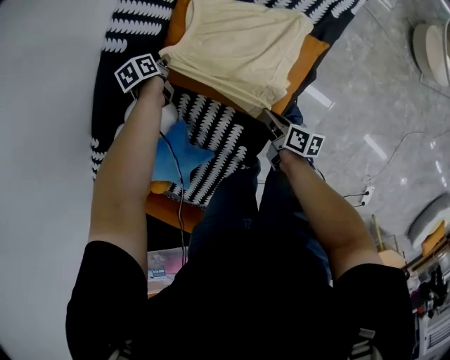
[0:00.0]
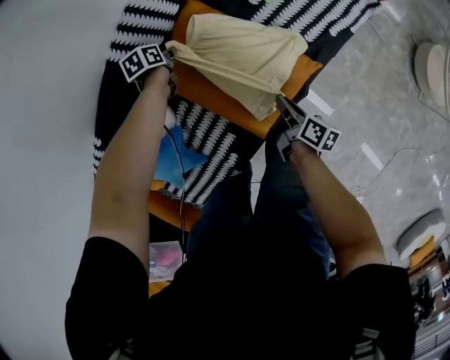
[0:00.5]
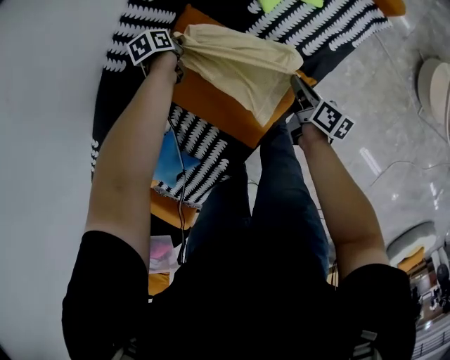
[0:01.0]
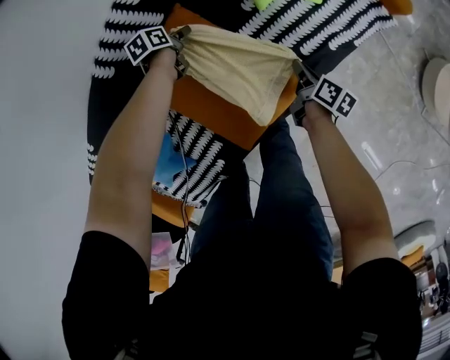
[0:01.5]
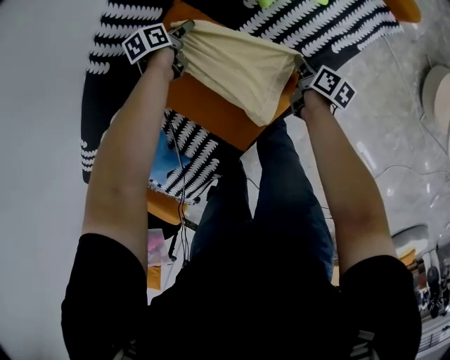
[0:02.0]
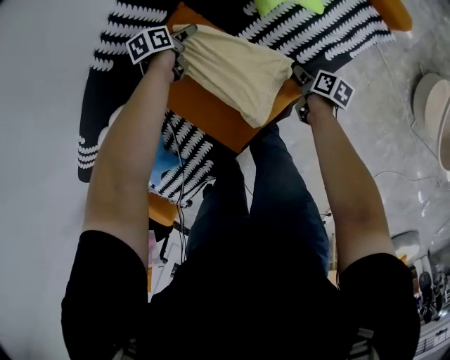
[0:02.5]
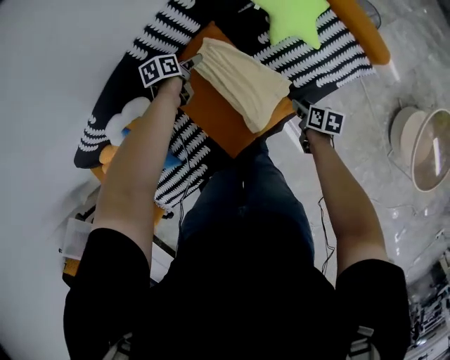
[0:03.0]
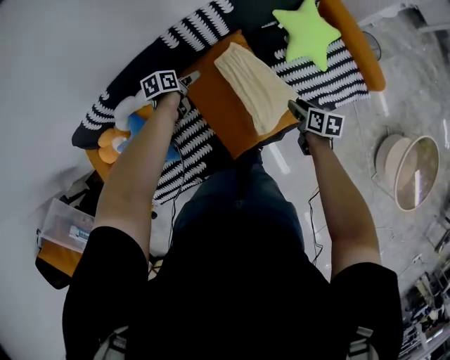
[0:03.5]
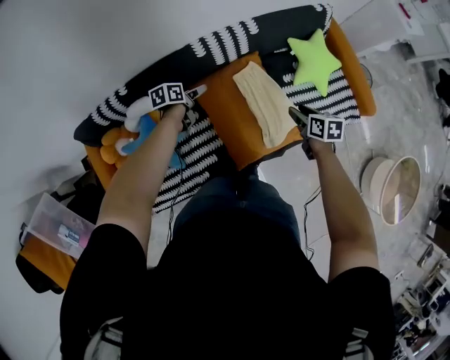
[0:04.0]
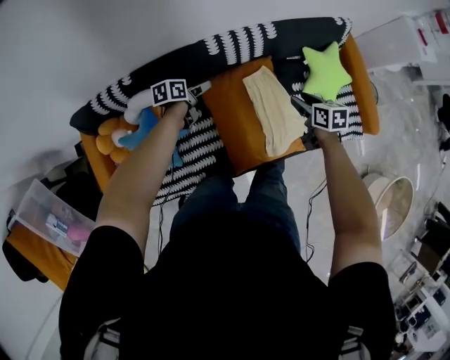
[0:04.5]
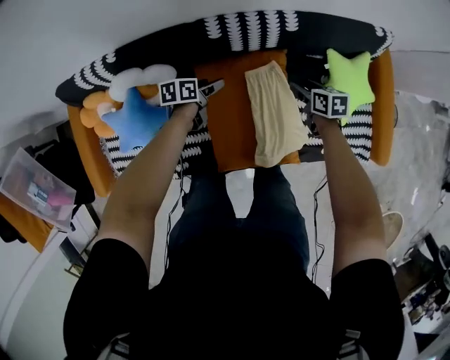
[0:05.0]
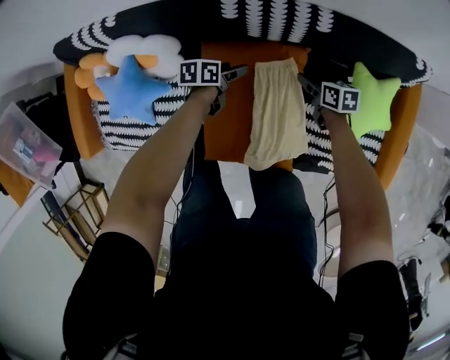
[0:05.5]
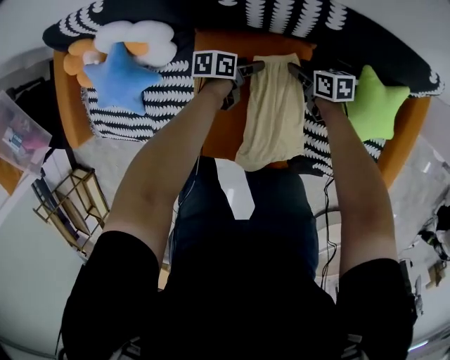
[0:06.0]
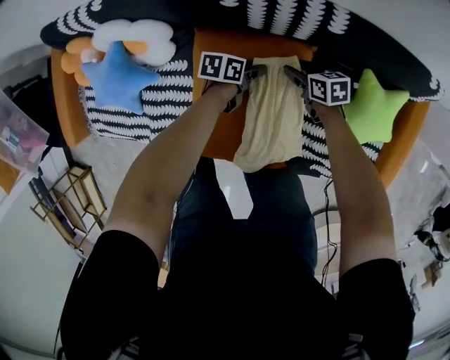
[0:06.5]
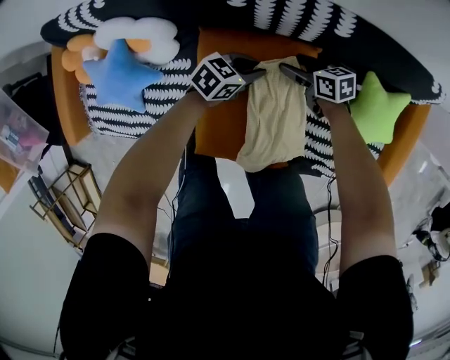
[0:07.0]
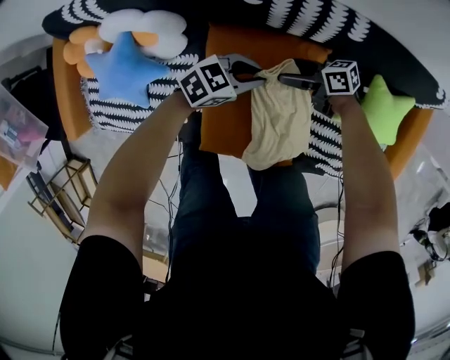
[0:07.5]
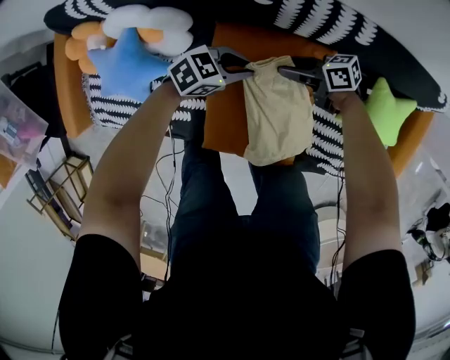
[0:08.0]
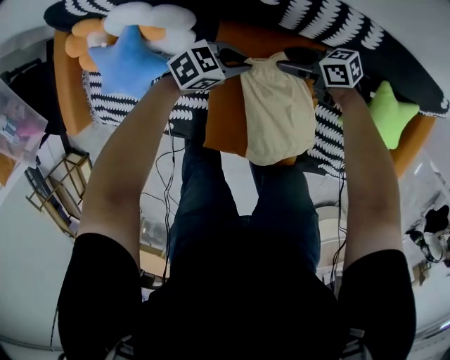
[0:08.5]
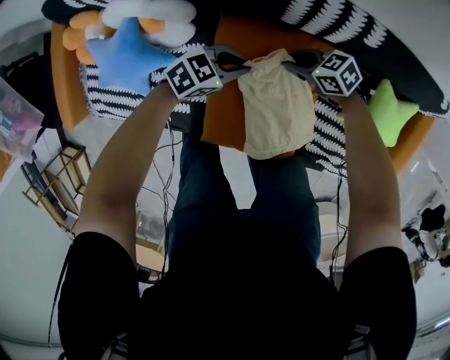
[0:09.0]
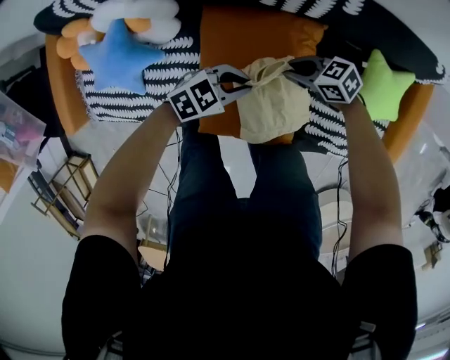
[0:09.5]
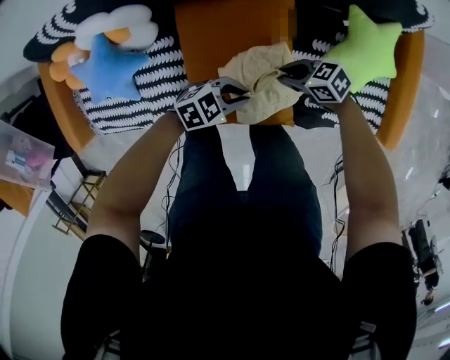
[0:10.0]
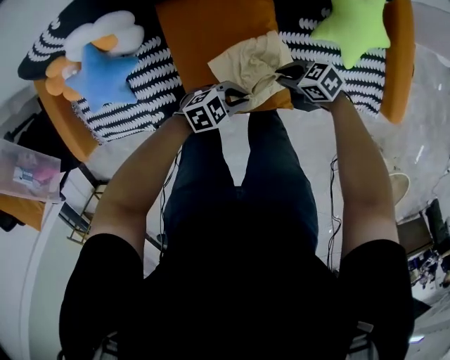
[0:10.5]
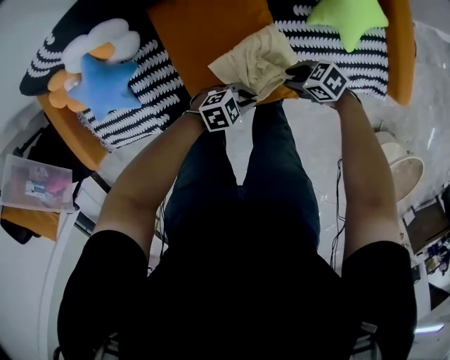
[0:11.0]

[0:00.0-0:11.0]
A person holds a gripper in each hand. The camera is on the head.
0:00.0 to 0:02.0: The right gripper goes approximately 35 cm forward and to the right; the left gripper moves forward and to the right, some 20 cm, and opens.
0:02.0 to 0:03.5: The left gripper moves upward, backward and to the left, roughly 30 cm. Meanwhile the right gripper travels upward by roughly 25 cm, twists some 40 degrees counterclockwise, seen from behind, and opens up.
0:03.5 to 0:05.5: The left gripper travels downward by approximately 15 cm, and turns by approximately 20 degrees. The right gripper ends up approximately 35 cm from where it was, and rotates approximately 40 degrees.
0:05.5 to 0:07.5: The right gripper moves roughly 15 cm, turns by about 40 degrees, and opens its fingers; the left gripper moves upward, some 5 cm, rotates around the line of its fingers by approximately 50 degrees, clockwise from behind, and closes its fingers.
0:07.5 to 0:09.0: The right gripper turns by approximately 30 degrees, and closes; the left gripper moves about 5 cm.
0:09.0 to 0:11.0: The right gripper shifts by about 35 cm. The left gripper changes place by approximately 35 cm, and changes its angle by roughly 40 degrees.

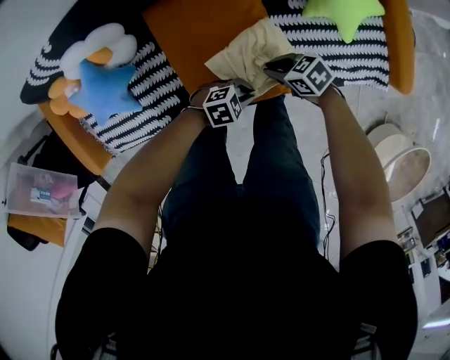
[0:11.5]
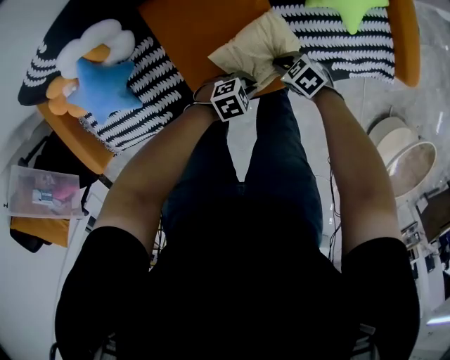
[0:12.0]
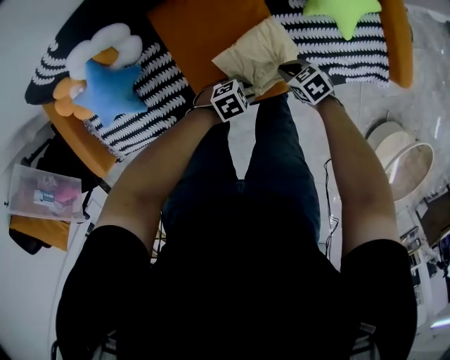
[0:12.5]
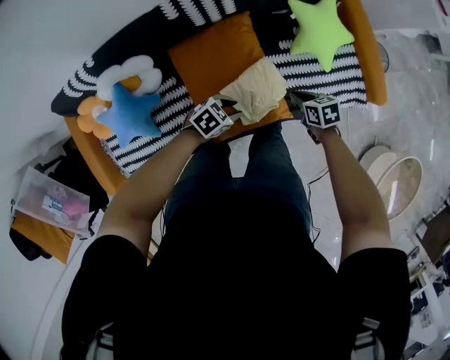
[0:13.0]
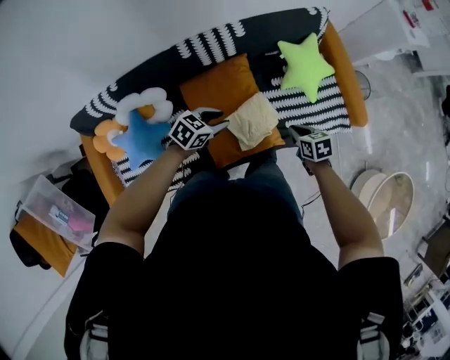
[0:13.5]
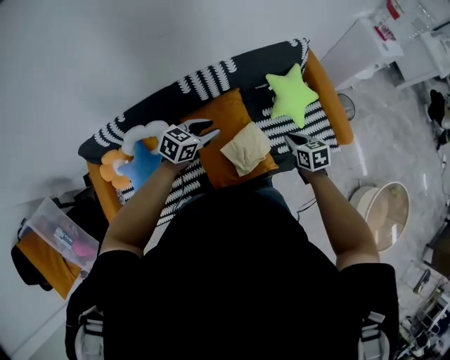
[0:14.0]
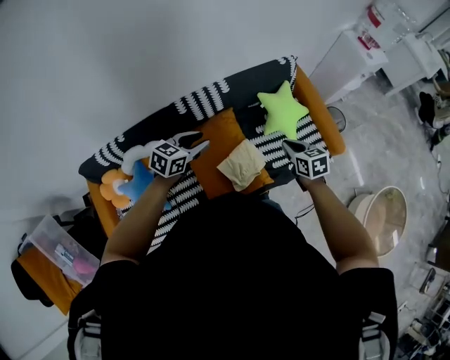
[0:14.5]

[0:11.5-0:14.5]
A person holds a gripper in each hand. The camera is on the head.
0:11.5 to 0:13.0: The grippers both shift upward by approximately 10 cm. The right gripper turns by roughly 30 degrees.
0:13.0 to 0:14.5: The grippers both shift upward by some 30 cm. The right gripper changes its angle by approximately 20 degrees. The left gripper rotates roughly 30 degrees.

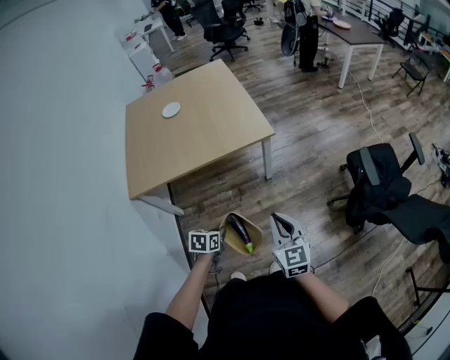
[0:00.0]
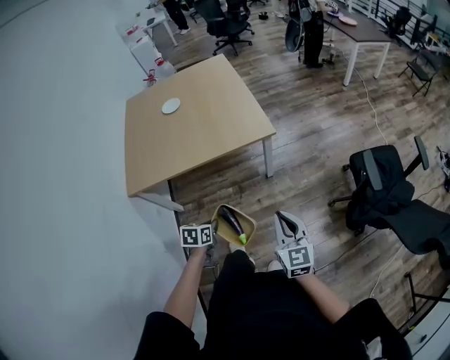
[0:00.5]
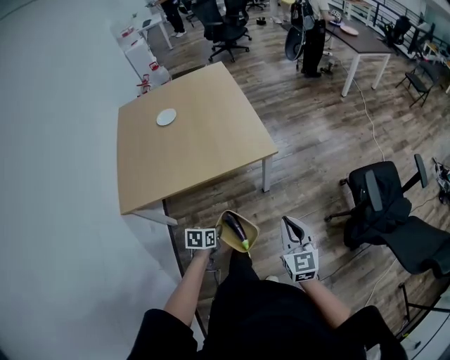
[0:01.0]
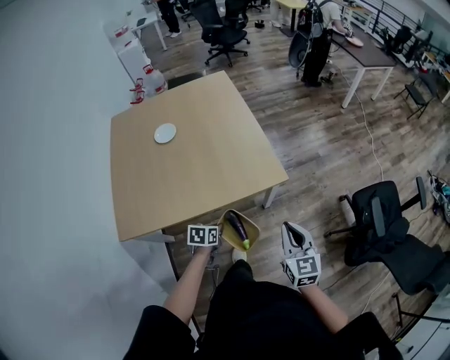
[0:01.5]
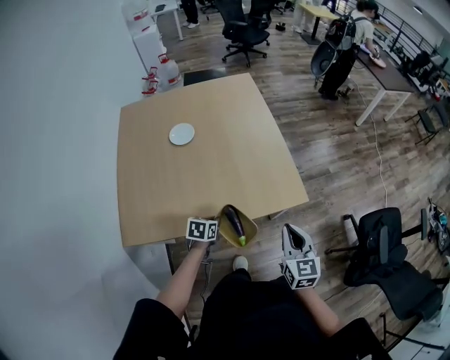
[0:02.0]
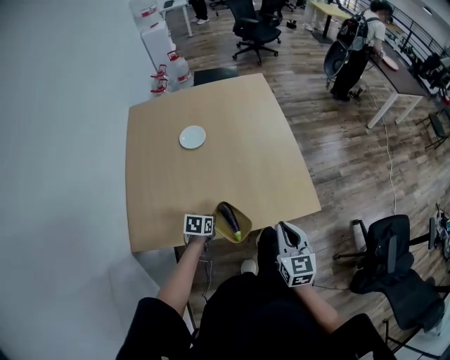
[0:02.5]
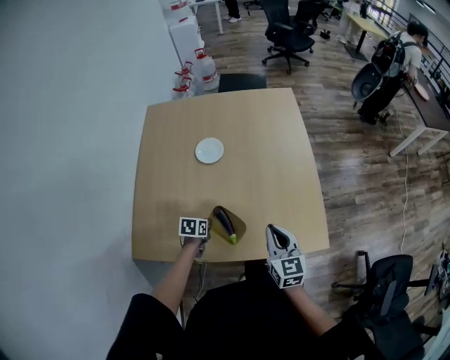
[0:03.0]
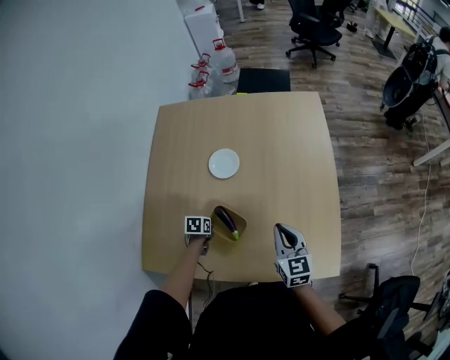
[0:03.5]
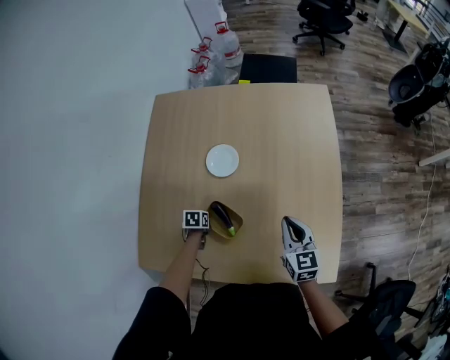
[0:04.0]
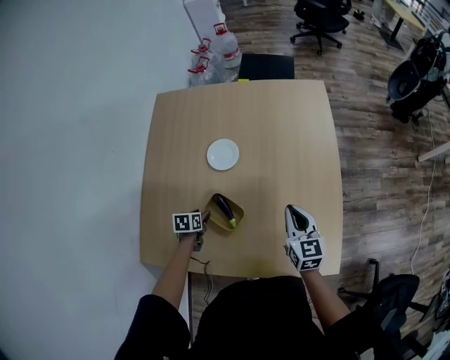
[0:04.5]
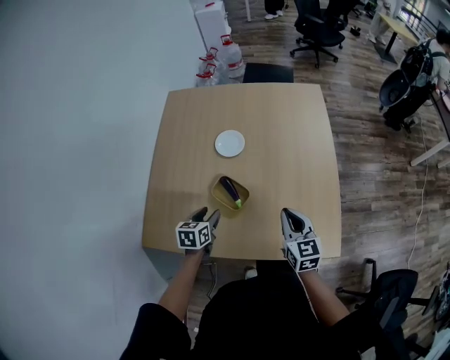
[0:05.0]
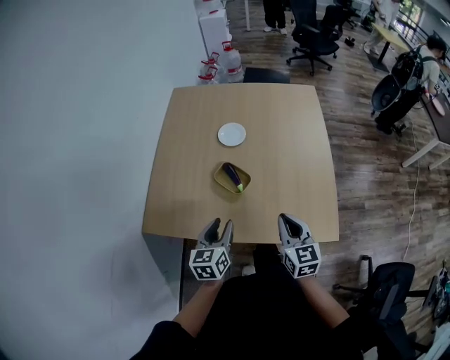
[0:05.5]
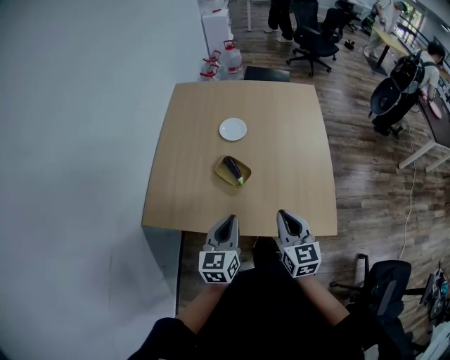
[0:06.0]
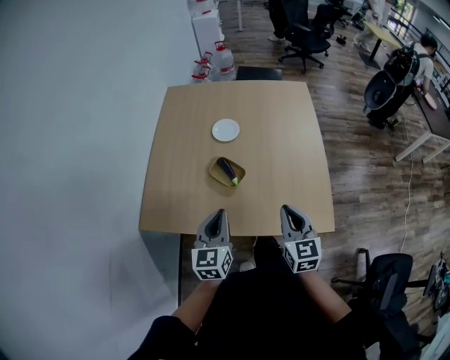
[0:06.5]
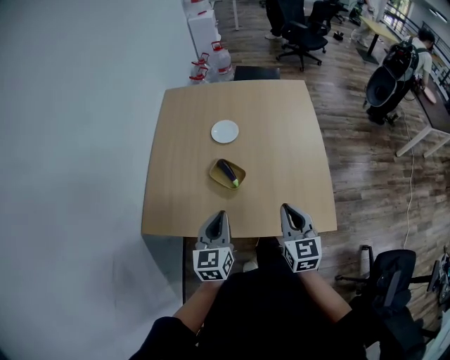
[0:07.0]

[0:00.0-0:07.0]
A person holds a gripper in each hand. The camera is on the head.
0:00.0 to 0:02.0: The grippers both shift forward and to the left by some 40 cm.
0:02.0 to 0:03.5: The right gripper is displaced forward and to the left by some 35 cm, and turns by approximately 20 degrees. Meanwhile the left gripper travels to the left, forward and downward by about 30 cm, and rotates some 30 degrees.
0:03.5 to 0:05.0: The right gripper travels backward by some 5 cm. Meanwhile the left gripper heads upward and backward, covering some 15 cm, changes its angle by approximately 30 degrees, and opens its fingers.
0:05.0 to 0:07.0: The right gripper goes about 15 cm backward and upward, while the left gripper heads upward and backward, covering some 20 cm, swivels roughly 30 degrees, and closes.

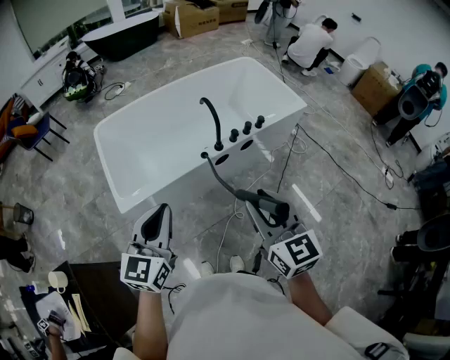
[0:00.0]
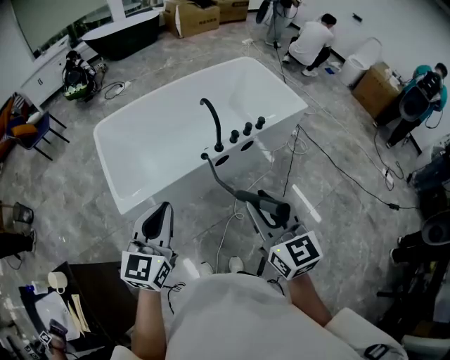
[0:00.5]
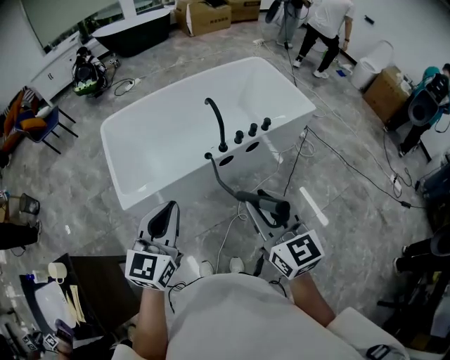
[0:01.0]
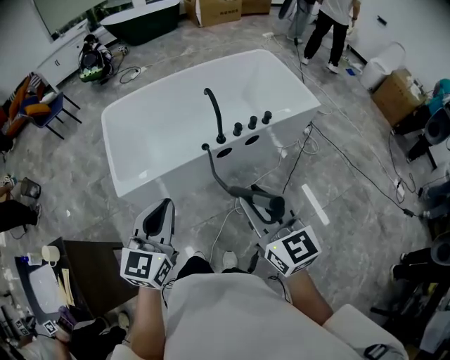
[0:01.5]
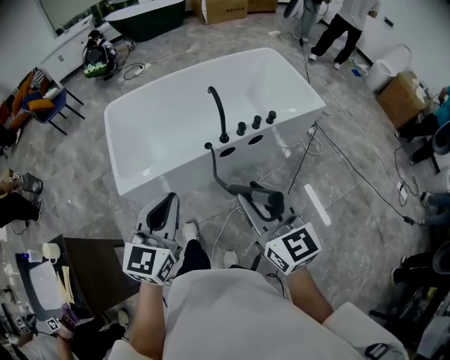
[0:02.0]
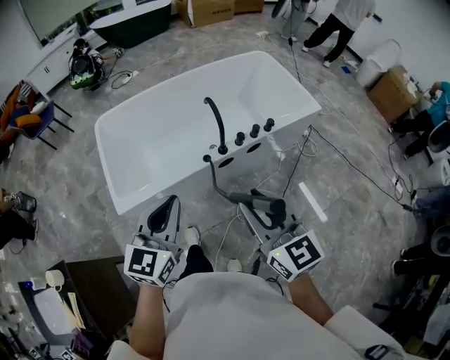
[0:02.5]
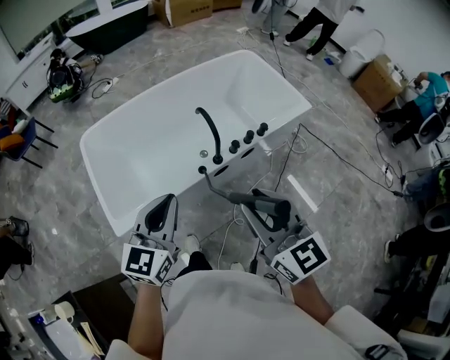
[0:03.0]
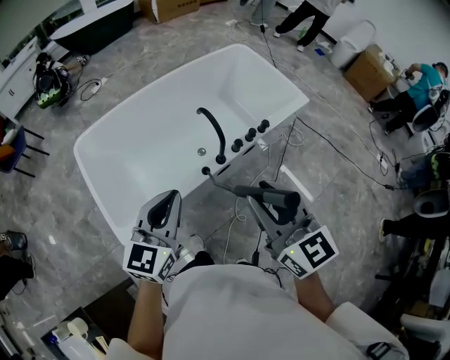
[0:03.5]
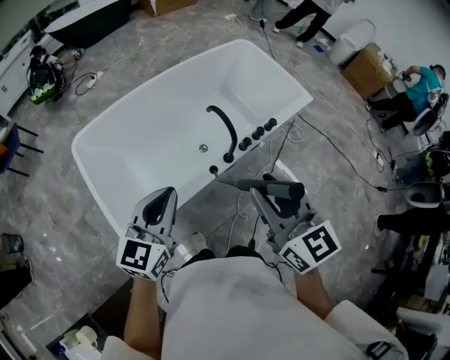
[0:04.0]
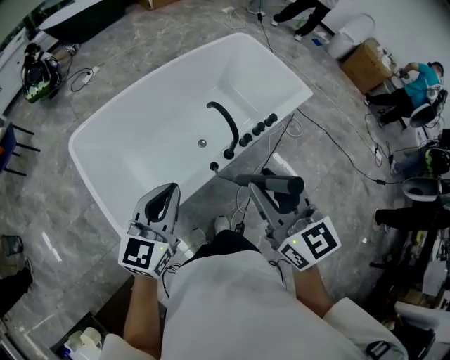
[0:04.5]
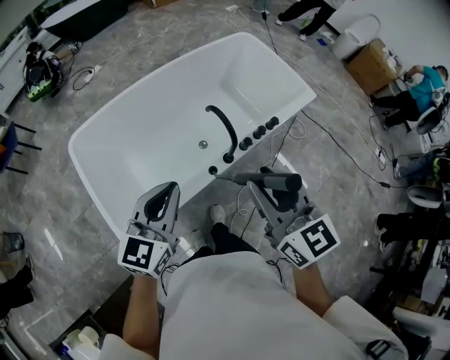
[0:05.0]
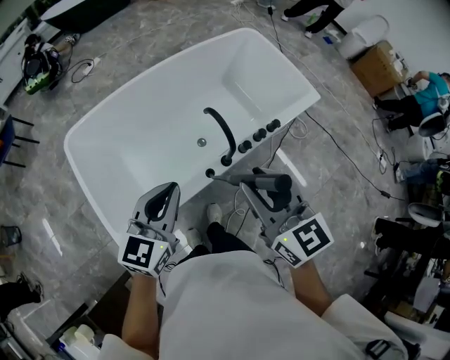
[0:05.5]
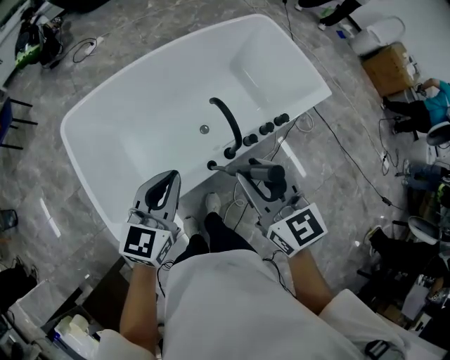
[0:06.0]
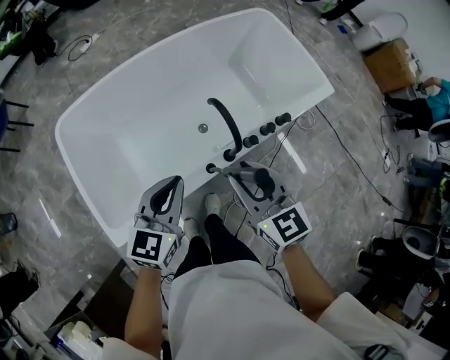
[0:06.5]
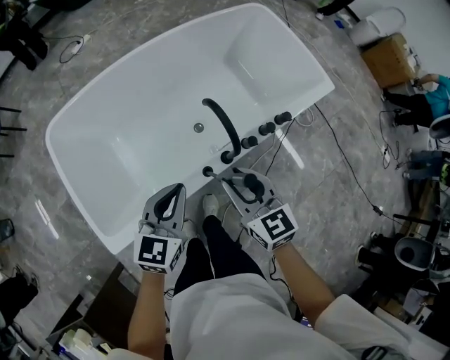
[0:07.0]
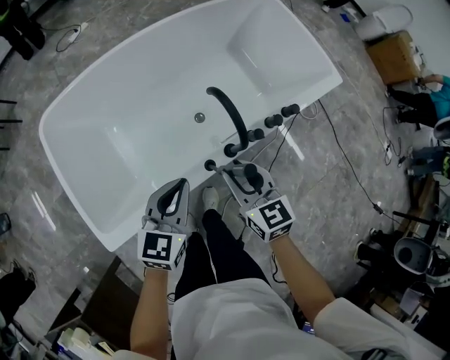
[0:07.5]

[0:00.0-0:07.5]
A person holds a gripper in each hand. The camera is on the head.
0:00.0 to 0:02.0: The right gripper moves some 5 cm; the left gripper moves to the right, approximately 10 cm.
0:02.0 to 0:04.0: The grippers both shift forward and to the left by some 25 cm. The left gripper changes its angle by about 20 degrees.
0:04.0 to 0:05.5: The two grippers go some 10 cm forward.
0:05.5 to 0:07.5: Both grippers travel together downward, some 20 cm.
